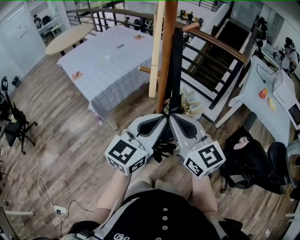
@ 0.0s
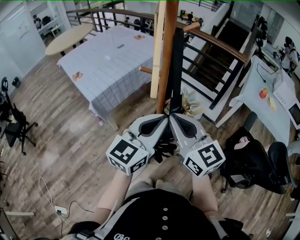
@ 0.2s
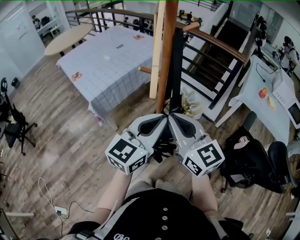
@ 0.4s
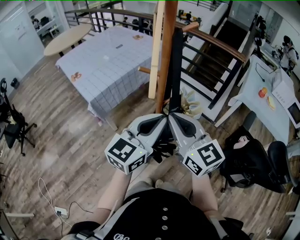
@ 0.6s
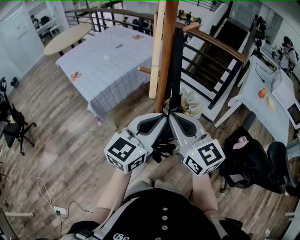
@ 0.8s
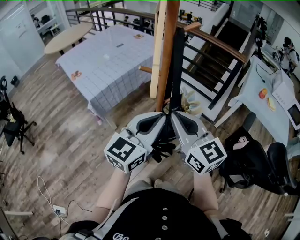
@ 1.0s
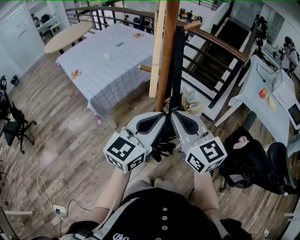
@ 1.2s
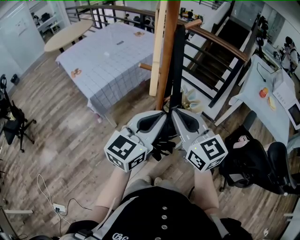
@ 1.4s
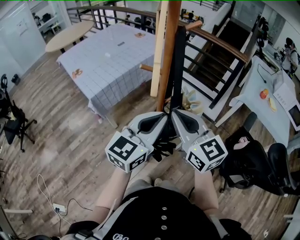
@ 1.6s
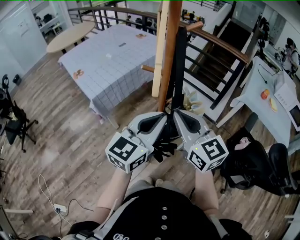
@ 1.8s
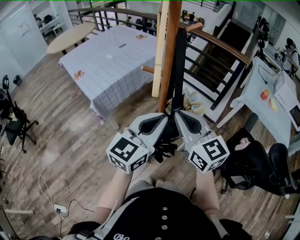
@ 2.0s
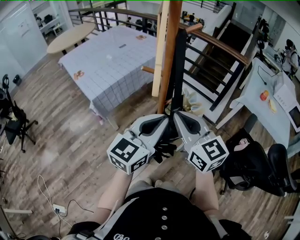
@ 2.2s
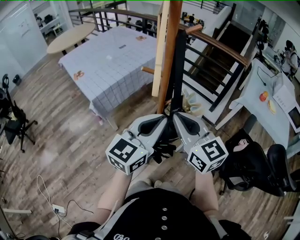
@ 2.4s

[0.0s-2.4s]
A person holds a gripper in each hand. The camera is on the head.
0.0s to 1.2s: The grippers stay close to where they were, moving slightly.
1.2s to 2.4s: The two grippers keep their place.

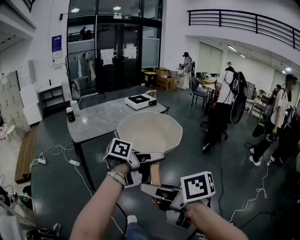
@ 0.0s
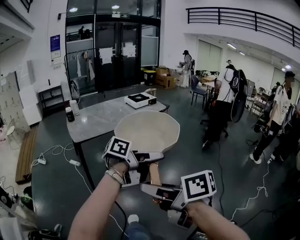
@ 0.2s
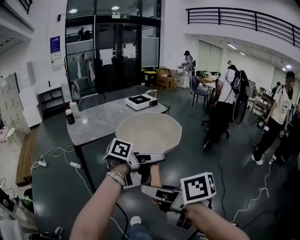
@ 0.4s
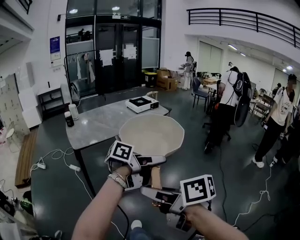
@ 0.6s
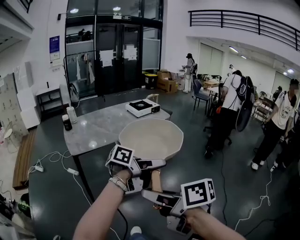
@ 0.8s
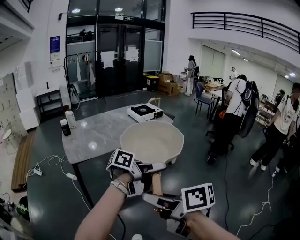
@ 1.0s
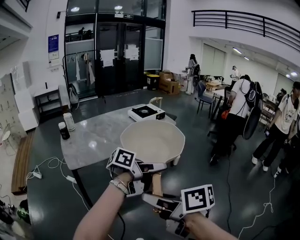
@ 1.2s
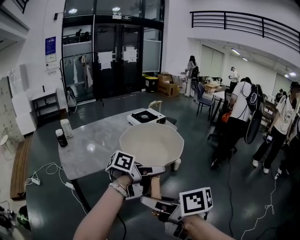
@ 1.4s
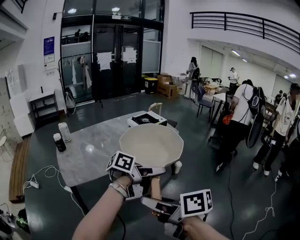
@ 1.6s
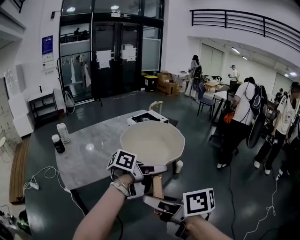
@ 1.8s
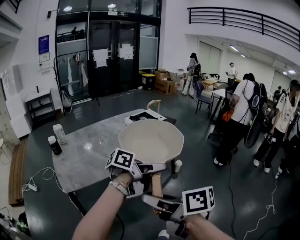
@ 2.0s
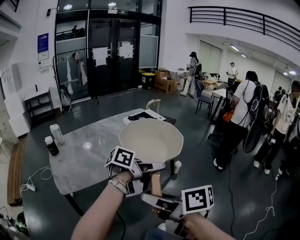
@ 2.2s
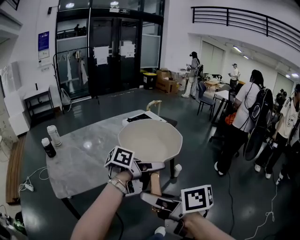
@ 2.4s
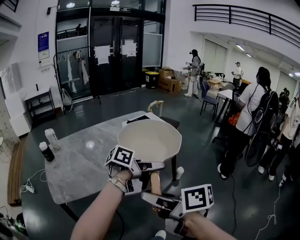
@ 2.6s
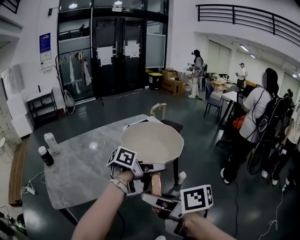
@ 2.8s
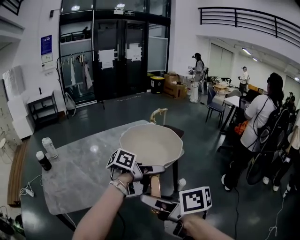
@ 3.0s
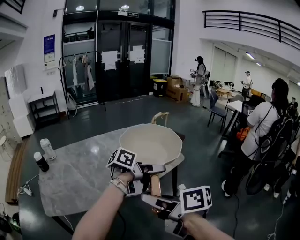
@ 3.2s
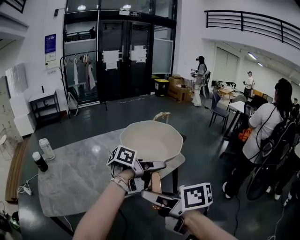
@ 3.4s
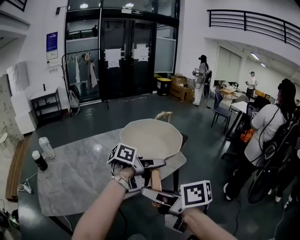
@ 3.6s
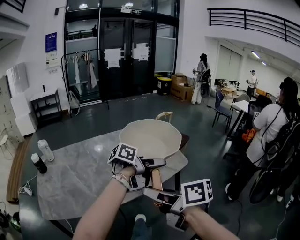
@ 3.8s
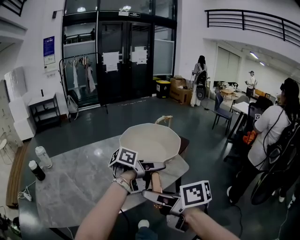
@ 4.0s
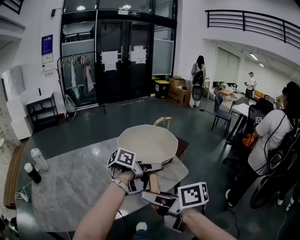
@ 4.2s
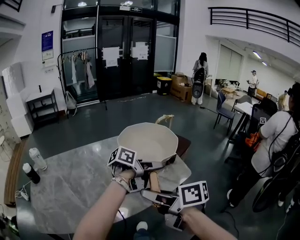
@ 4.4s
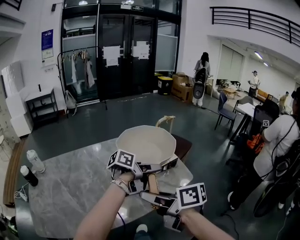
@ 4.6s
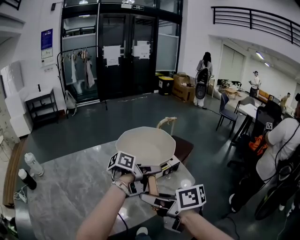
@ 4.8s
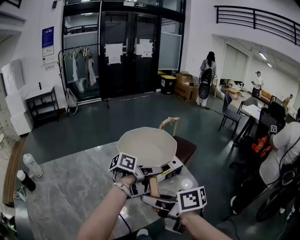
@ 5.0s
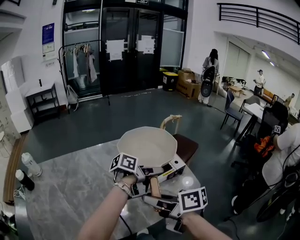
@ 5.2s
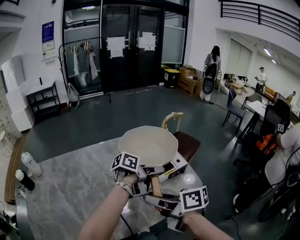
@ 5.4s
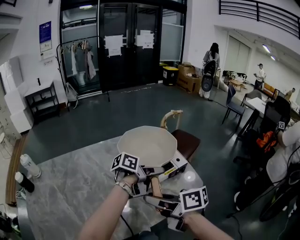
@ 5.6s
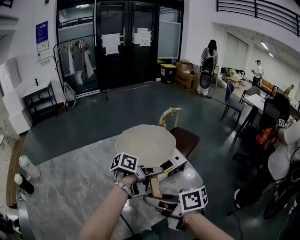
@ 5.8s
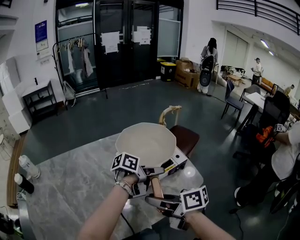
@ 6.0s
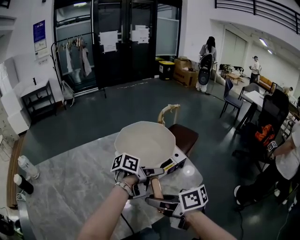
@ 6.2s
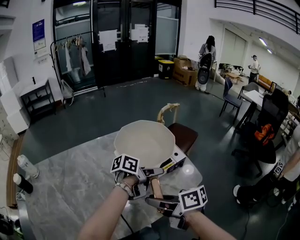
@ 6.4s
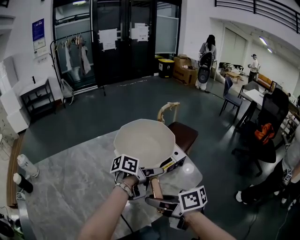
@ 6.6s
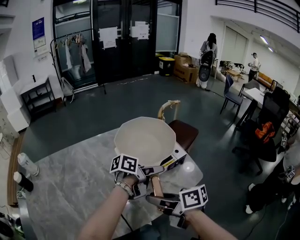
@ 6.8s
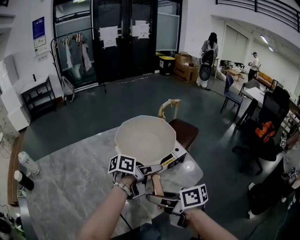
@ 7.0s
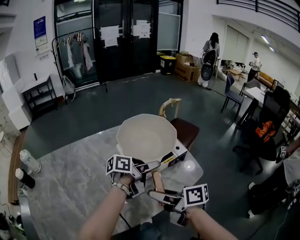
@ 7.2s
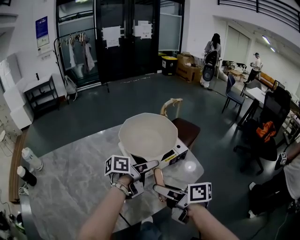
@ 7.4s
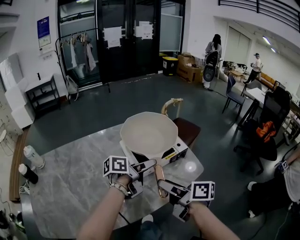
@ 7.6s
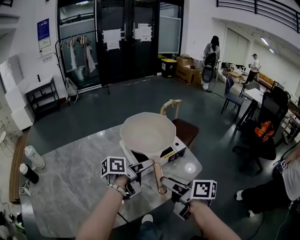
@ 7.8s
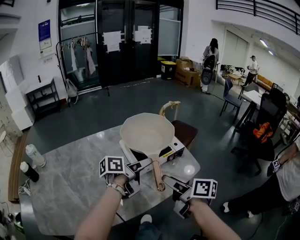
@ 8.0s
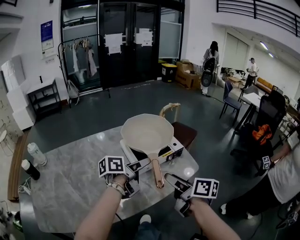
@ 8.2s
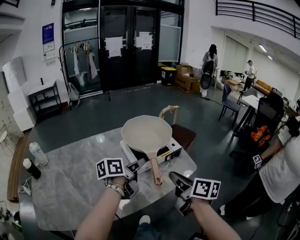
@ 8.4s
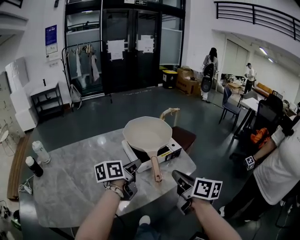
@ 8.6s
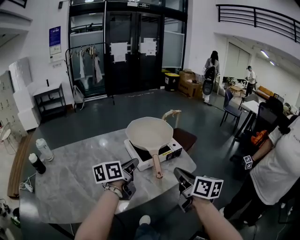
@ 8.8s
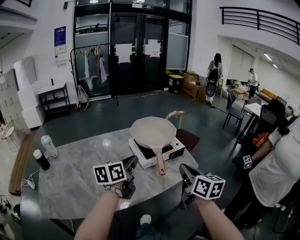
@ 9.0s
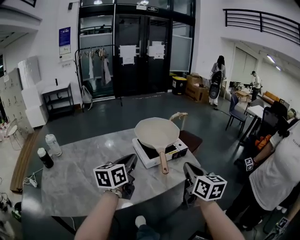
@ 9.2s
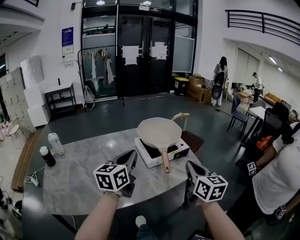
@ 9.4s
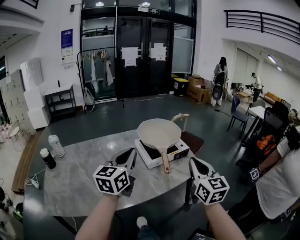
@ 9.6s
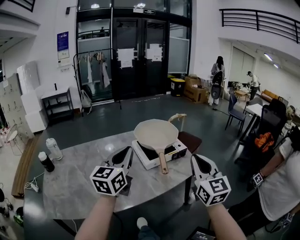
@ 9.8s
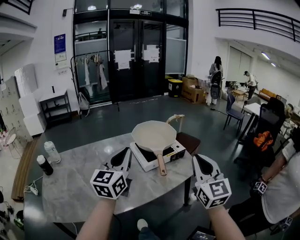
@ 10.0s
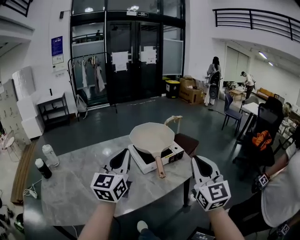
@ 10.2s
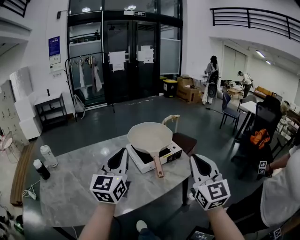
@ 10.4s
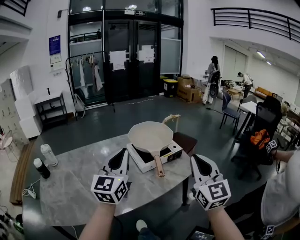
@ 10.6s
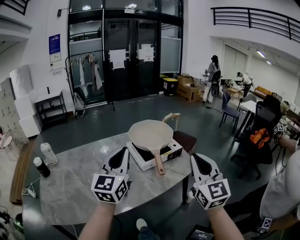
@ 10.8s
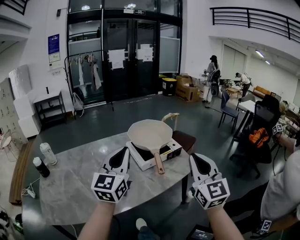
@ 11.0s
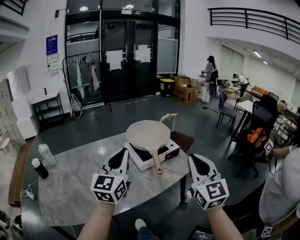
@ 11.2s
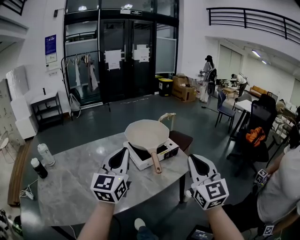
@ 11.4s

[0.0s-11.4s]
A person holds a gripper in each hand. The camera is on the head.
0.0s to 1.4s: The left gripper moves approximately 30 cm; the right gripper moves roughly 30 cm.
1.4s to 2.8s: The right gripper ends up about 25 cm from where it was. The left gripper changes place by roughly 25 cm.
2.8s to 4.2s: The left gripper ends up some 25 cm from where it was. The right gripper changes place by about 25 cm.
4.2s to 5.6s: The left gripper moves roughly 20 cm; the right gripper shifts by approximately 15 cm.
5.6s to 7.2s: The grippers make only small movements.
7.2s to 8.6s: The right gripper goes approximately 10 cm to the right and upward, swivels roughly 30 degrees, and closes its fingers. The left gripper moves backward, upward and to the left, about 15 cm, changes its angle by about 30 degrees, and closes its fingers.
8.6s to 10.0s: The right gripper heads upward and backward, covering some 15 cm, and rolls counterclockwise, seen from behind, by about 50 degrees; the left gripper heads upward, backward and to the left, covering some 15 cm, and twists roughly 40 degrees clockwise, seen from behind.
10.0s to 11.4s: The grippers make only small movements.

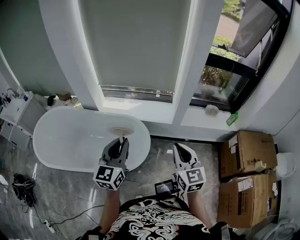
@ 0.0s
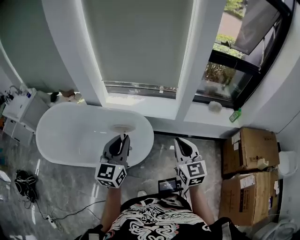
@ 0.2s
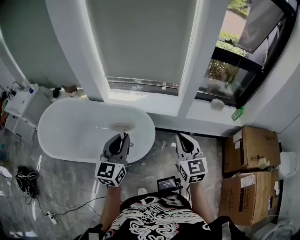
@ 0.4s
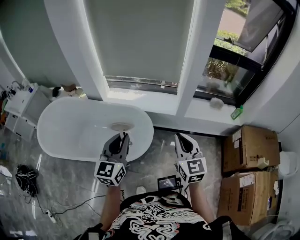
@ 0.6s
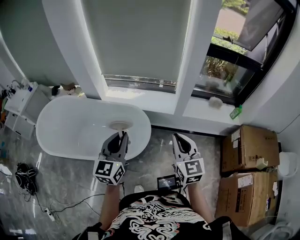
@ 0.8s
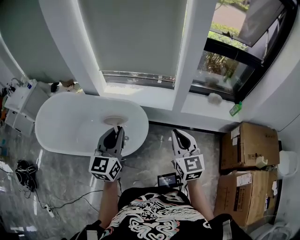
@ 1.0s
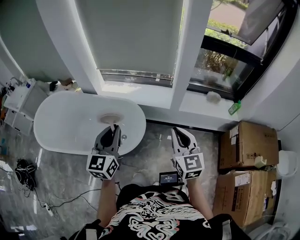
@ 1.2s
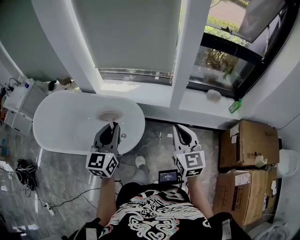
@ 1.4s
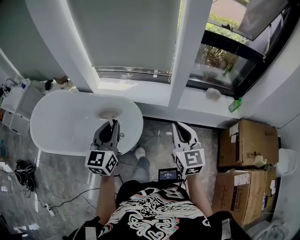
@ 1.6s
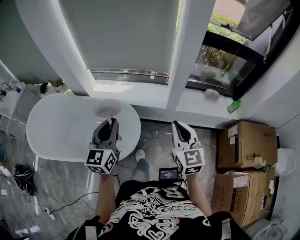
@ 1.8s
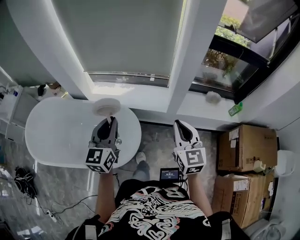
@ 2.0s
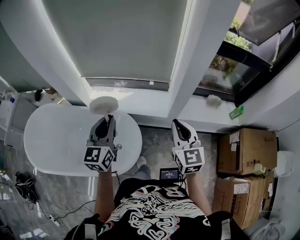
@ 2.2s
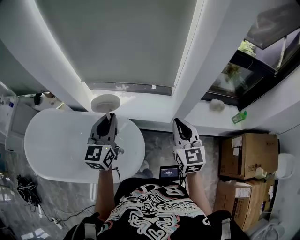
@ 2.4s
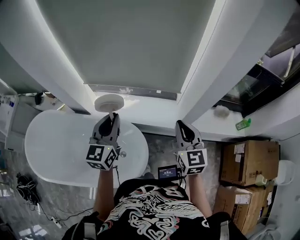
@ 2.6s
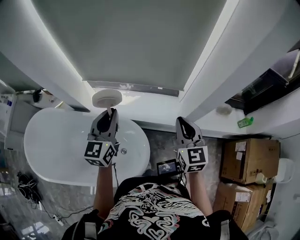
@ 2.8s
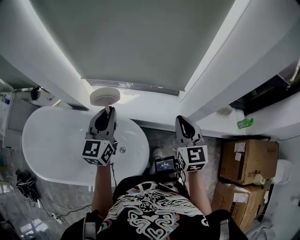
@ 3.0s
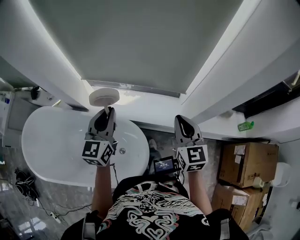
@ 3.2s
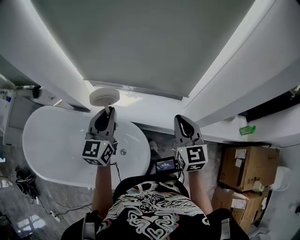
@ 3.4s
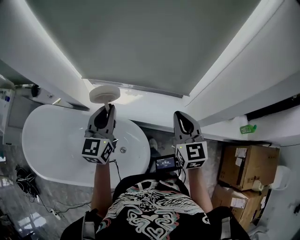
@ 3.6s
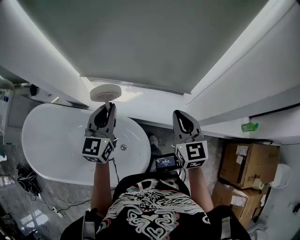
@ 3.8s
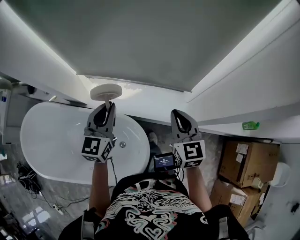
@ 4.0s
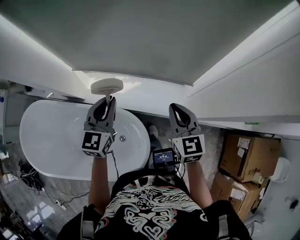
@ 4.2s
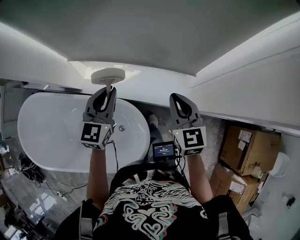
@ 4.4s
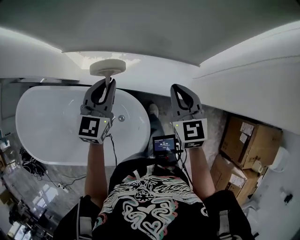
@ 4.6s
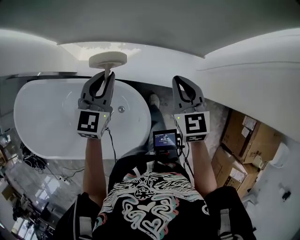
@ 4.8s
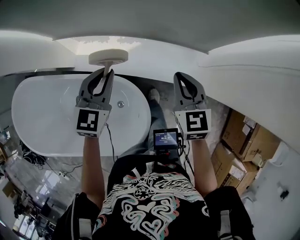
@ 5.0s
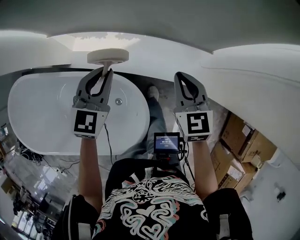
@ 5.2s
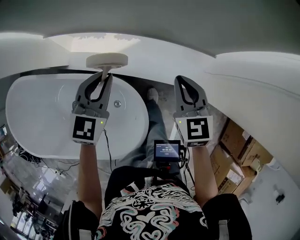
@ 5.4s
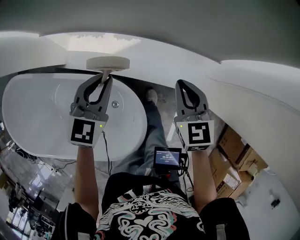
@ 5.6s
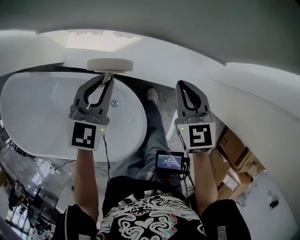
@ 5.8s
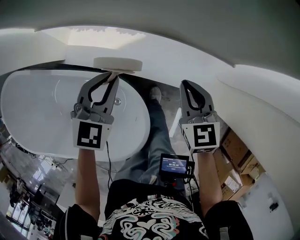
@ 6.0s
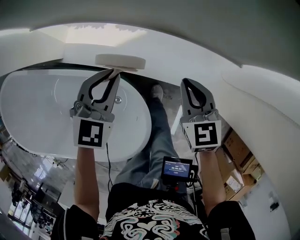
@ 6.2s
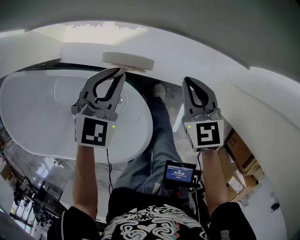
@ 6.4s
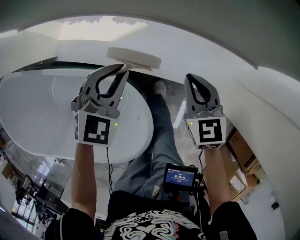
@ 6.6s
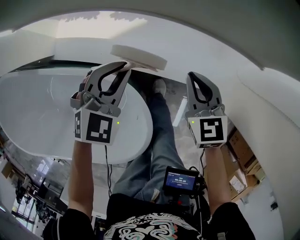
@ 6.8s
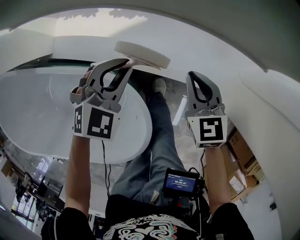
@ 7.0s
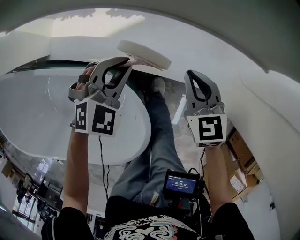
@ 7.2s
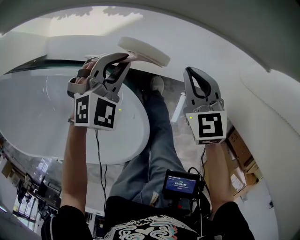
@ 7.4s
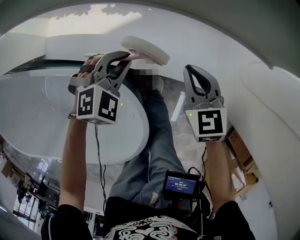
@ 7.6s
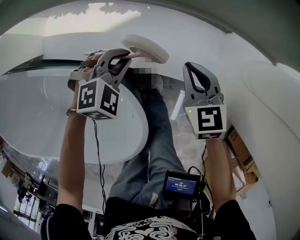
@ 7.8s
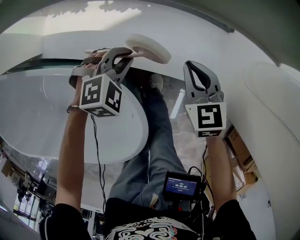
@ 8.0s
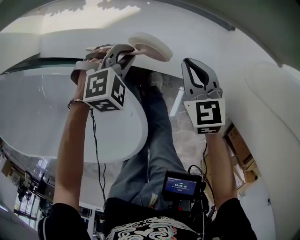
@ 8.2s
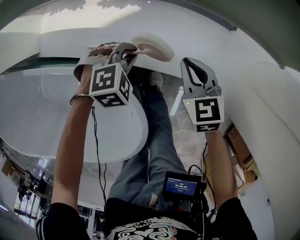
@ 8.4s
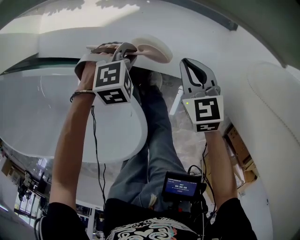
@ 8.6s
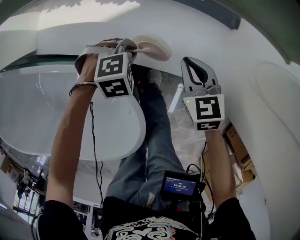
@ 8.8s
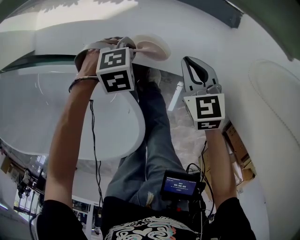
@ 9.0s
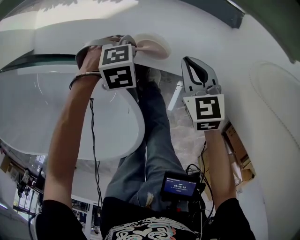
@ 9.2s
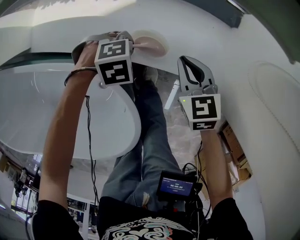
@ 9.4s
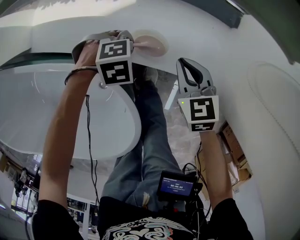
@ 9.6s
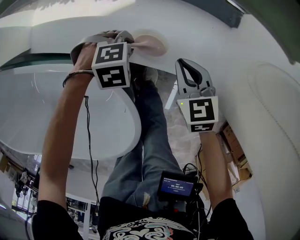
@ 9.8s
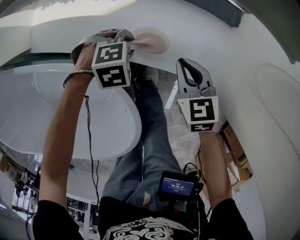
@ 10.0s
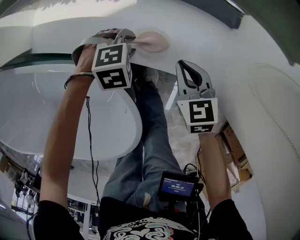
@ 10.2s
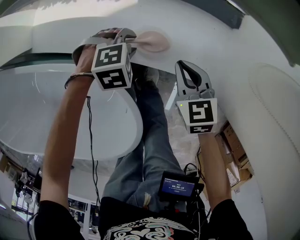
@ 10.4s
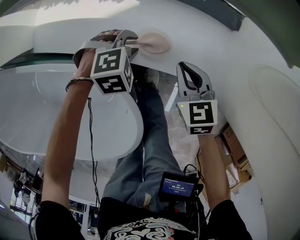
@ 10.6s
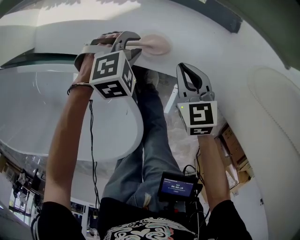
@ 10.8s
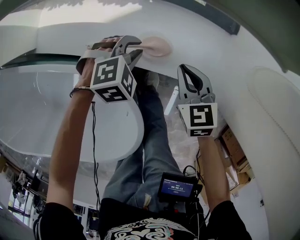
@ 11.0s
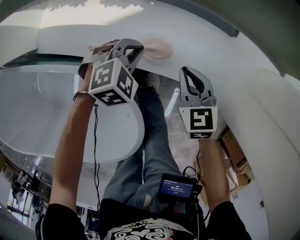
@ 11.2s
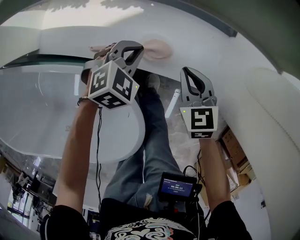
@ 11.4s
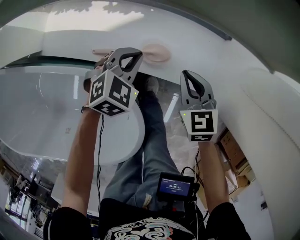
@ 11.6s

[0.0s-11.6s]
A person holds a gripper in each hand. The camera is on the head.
0.0s to 1.4s: The two grippers go about 10 cm to the right.
1.4s to 2.8s: Both grippers move forward, approximately 40 cm.
2.8s to 4.4s: The grippers both shift forward and downward by about 20 cm.
4.4s to 5.8s: The grippers both shift downward by some 20 cm.
5.8s to 7.2s: Both grippers move downward, approximately 20 cm. The left gripper rotates about 30 degrees.
7.2s to 8.8s: The left gripper moves downward, about 15 cm, and changes its angle by approximately 30 degrees; the right gripper shifts about 10 cm downward.
8.8s to 10.2s: The left gripper opens up.
10.2s to 11.6s: The left gripper heads upward, covering about 10 cm, rotates roughly 40 degrees, and closes.
